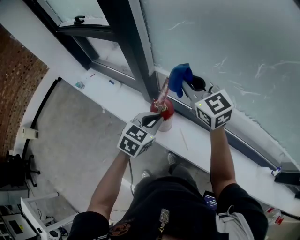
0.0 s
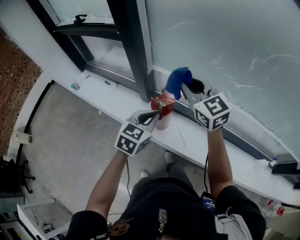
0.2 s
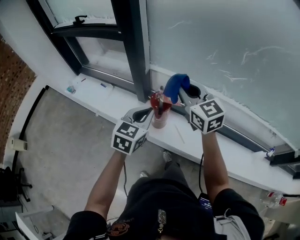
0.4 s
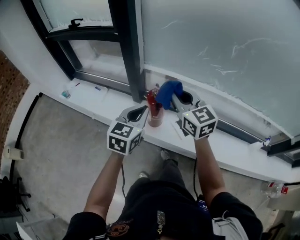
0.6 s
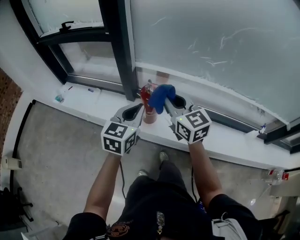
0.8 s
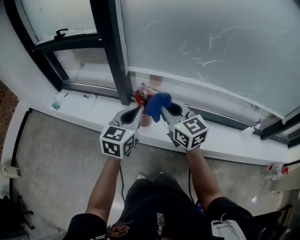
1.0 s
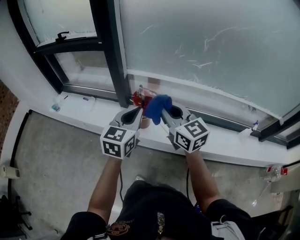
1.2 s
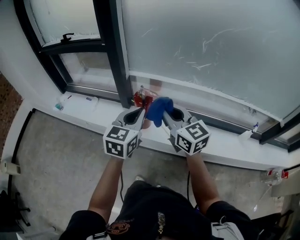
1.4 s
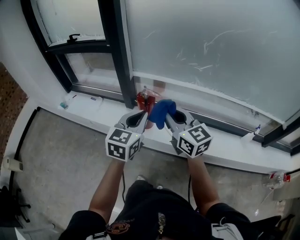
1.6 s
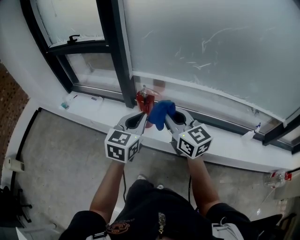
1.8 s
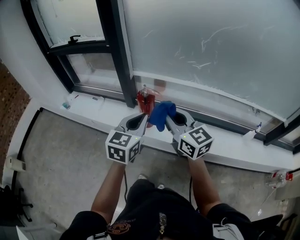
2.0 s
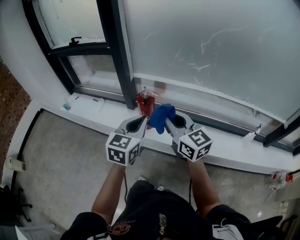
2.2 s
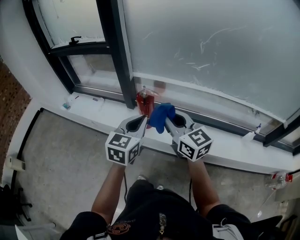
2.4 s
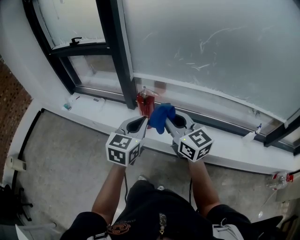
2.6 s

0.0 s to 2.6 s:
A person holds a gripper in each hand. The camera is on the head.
0.0 to 1.2 s: The left gripper goes some 20 cm backward and upward, and rotates some 20 degrees. The right gripper moves backward, some 25 cm, and changes its angle by approximately 20 degrees.
1.2 to 2.6 s: The grippers both shift backward by about 10 cm.

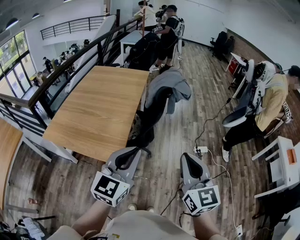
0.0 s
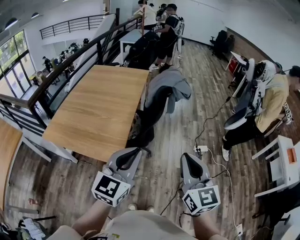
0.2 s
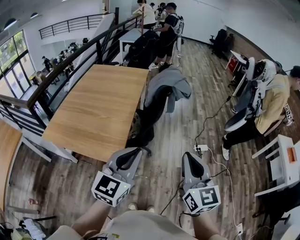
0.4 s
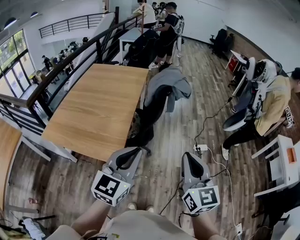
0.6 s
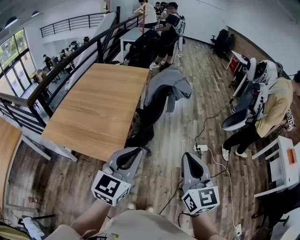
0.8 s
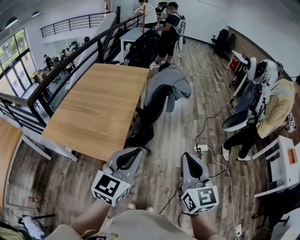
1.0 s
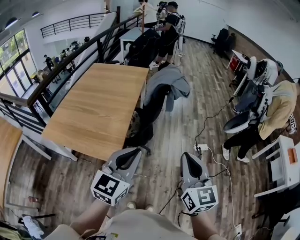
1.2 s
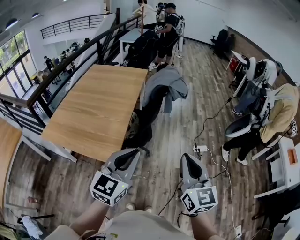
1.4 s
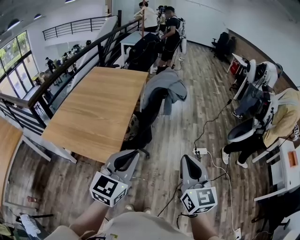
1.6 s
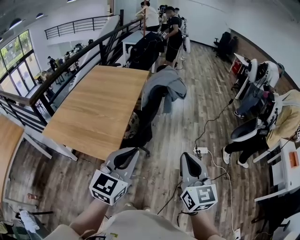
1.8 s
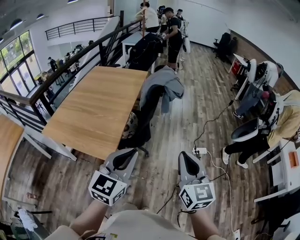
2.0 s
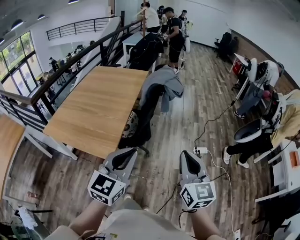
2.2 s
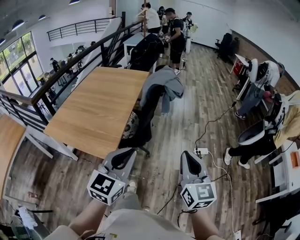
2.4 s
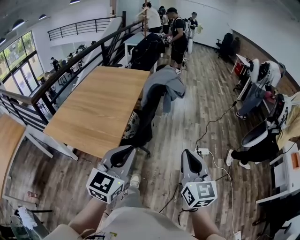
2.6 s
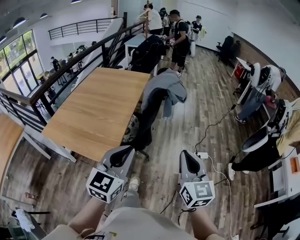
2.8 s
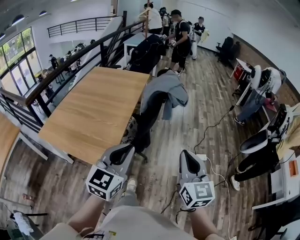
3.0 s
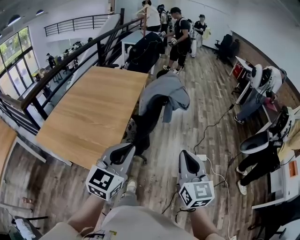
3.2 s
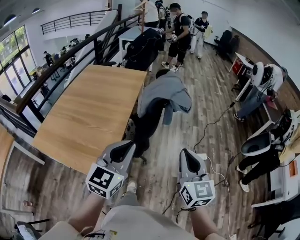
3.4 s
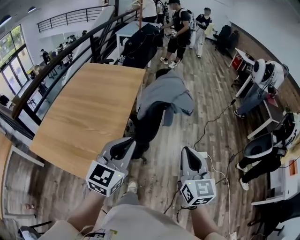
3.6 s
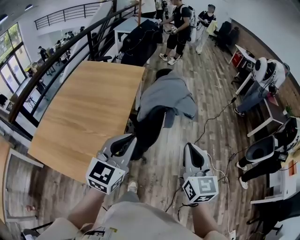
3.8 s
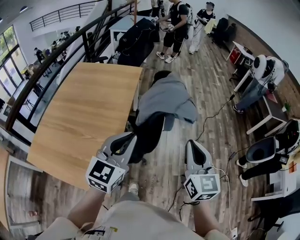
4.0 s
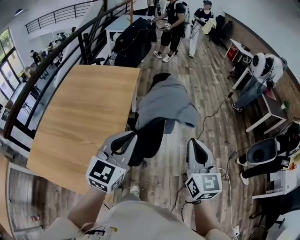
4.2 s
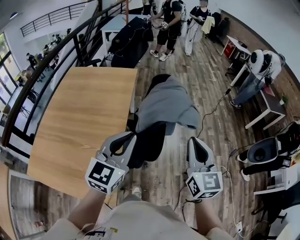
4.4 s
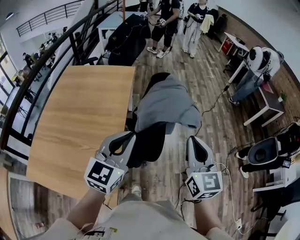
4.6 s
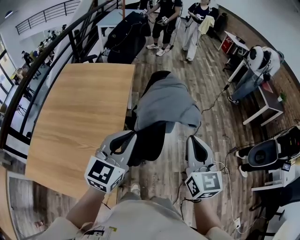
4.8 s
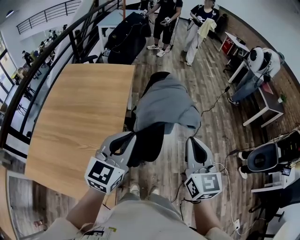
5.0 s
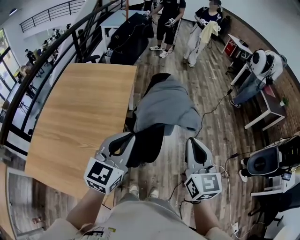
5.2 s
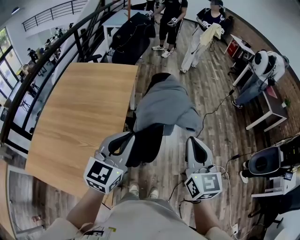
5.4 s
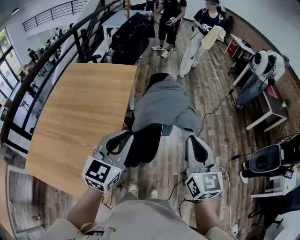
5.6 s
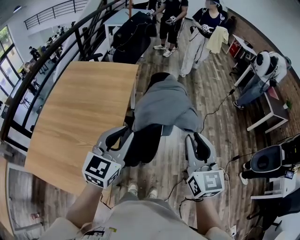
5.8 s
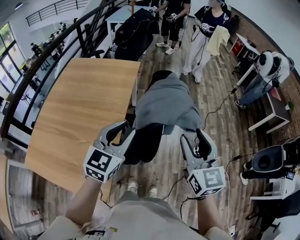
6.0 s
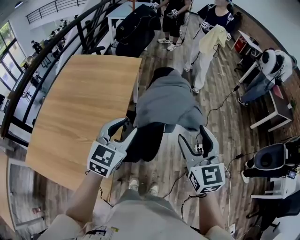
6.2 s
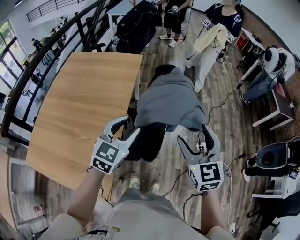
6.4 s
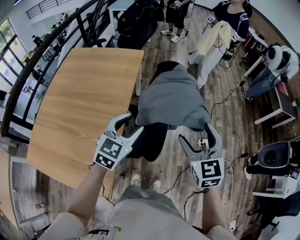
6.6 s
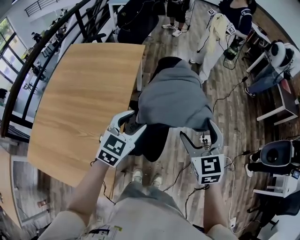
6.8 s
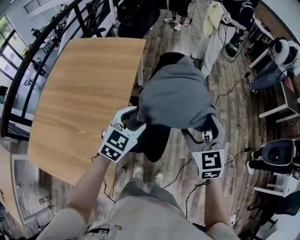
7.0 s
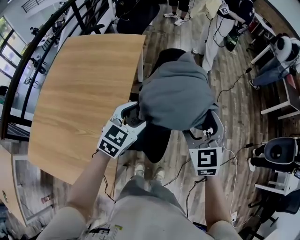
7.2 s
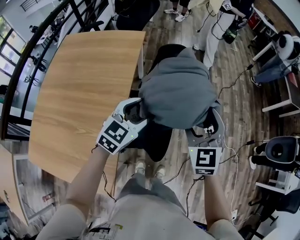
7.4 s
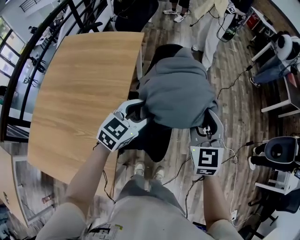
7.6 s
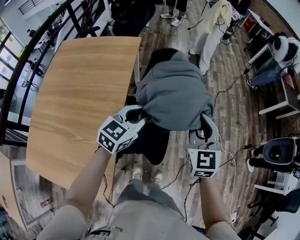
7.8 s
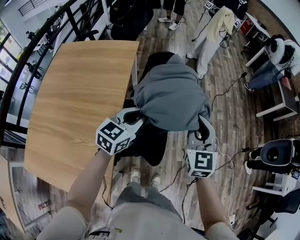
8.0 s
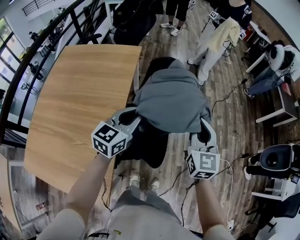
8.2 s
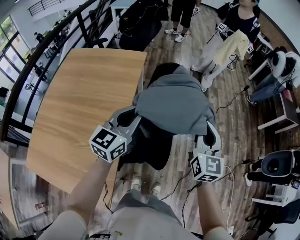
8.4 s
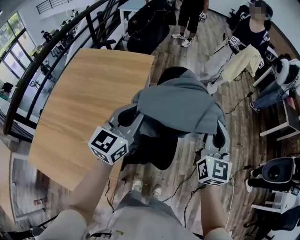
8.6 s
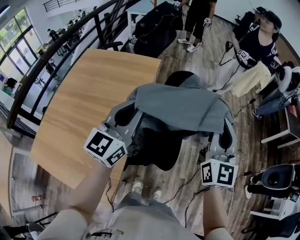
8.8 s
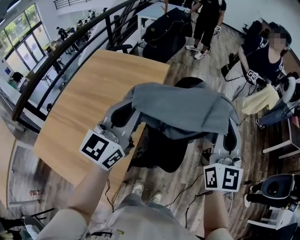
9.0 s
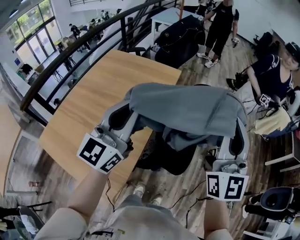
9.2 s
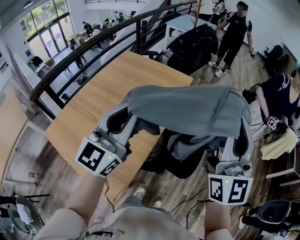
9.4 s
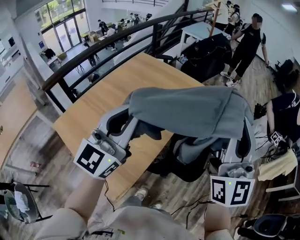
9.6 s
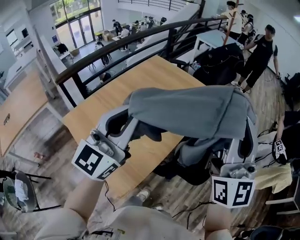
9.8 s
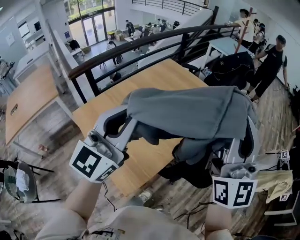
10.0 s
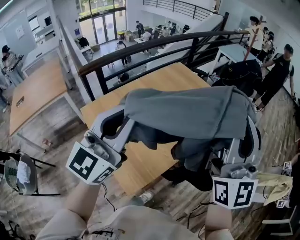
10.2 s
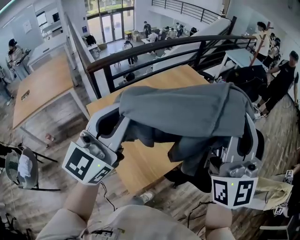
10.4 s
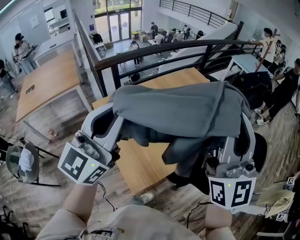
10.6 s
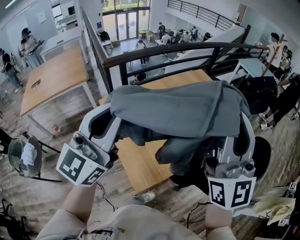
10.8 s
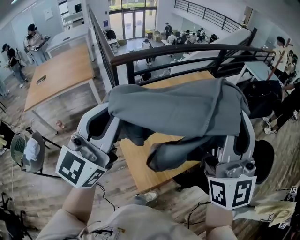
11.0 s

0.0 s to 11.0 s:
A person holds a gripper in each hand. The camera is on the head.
0.0 to 1.6 s: The right gripper heads to the right, covering roughly 5 cm.
1.6 to 3.2 s: Both grippers move forward, some 15 cm.
3.2 to 4.8 s: The two grippers go approximately 30 cm forward.
4.8 to 6.2 s: The right gripper heads forward, covering about 5 cm, and opens its fingers. The left gripper is displaced forward and downward by about 10 cm, and opens up.
6.2 to 7.8 s: Both grippers travel together forward and downward, roughly 20 cm. The right gripper closes its fingers, while the left gripper turns by some 20 degrees, and closes its fingers.
7.8 to 9.4 s: The two grippers go approximately 30 cm upward. The right gripper tips its fingers upward by approximately 40 degrees. The left gripper angles its fingers upward, by approximately 40 degrees.
9.4 to 11.0 s: The right gripper ends up some 35 cm from where it was, and swivels about 40 degrees; the left gripper moves approximately 40 cm, and changes its angle by some 40 degrees.

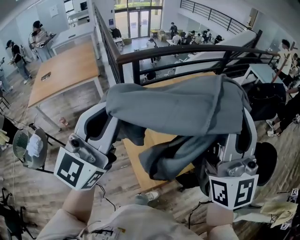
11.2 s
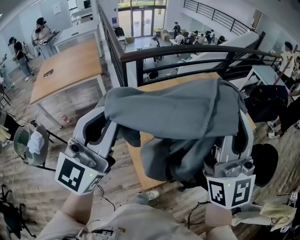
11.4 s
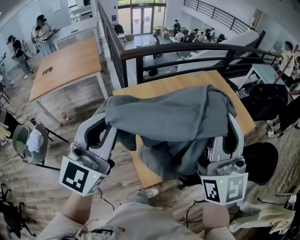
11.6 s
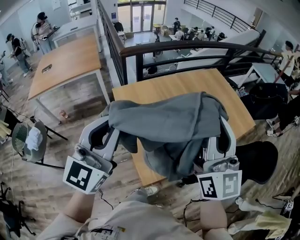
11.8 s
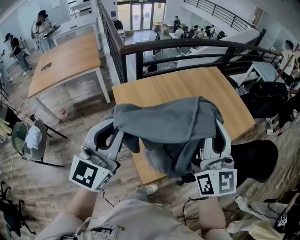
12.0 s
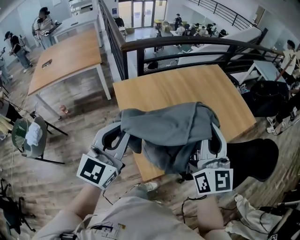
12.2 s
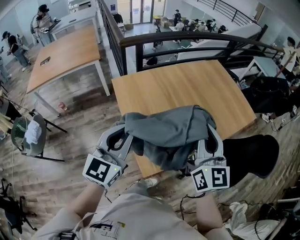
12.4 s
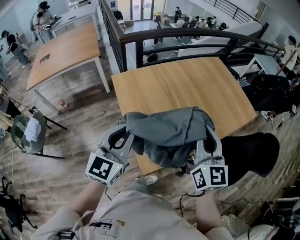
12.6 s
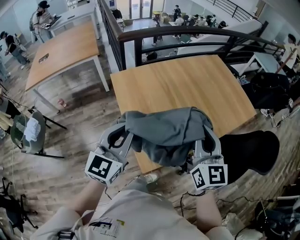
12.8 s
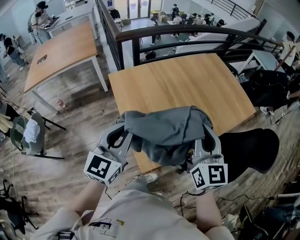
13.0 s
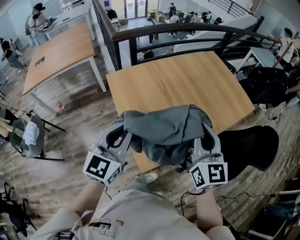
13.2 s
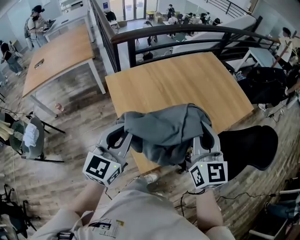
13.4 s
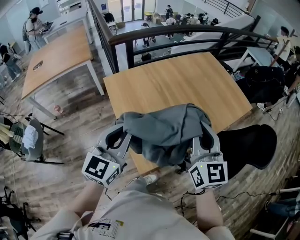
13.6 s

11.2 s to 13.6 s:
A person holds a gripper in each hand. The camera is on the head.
11.2 to 12.4 s: The two grippers go roughly 20 cm downward. The right gripper turns by approximately 30 degrees. The left gripper changes its angle by roughly 20 degrees.
12.4 to 13.6 s: The grippers move only a little.

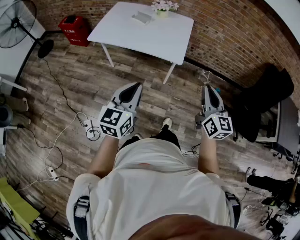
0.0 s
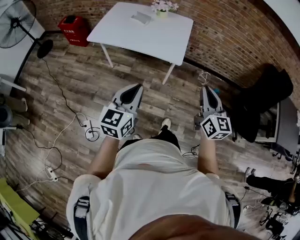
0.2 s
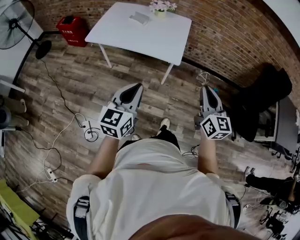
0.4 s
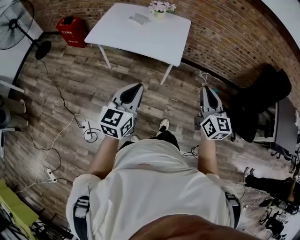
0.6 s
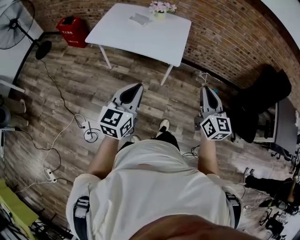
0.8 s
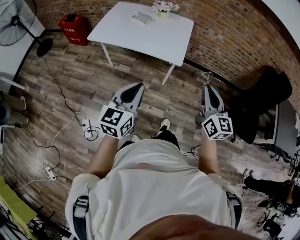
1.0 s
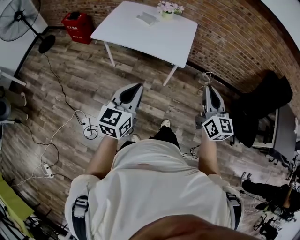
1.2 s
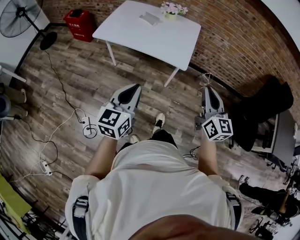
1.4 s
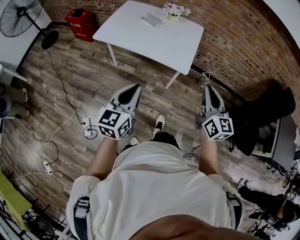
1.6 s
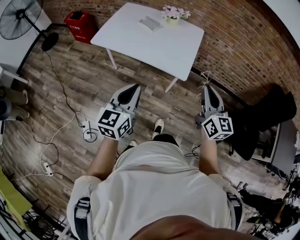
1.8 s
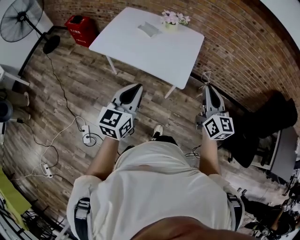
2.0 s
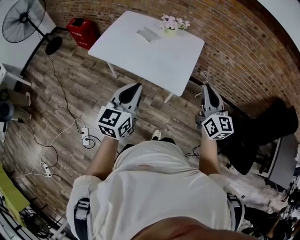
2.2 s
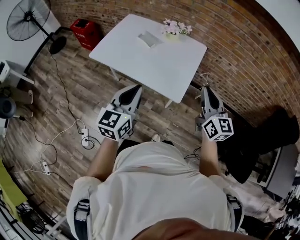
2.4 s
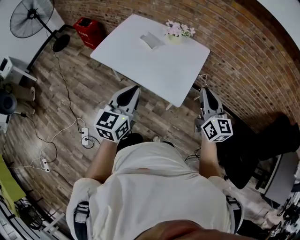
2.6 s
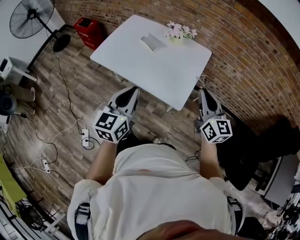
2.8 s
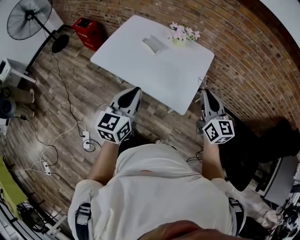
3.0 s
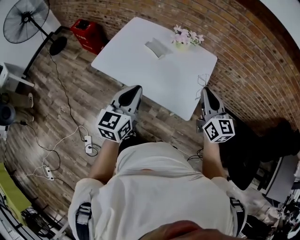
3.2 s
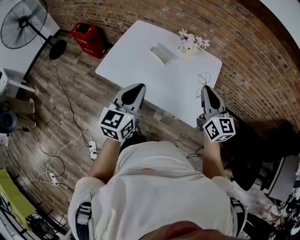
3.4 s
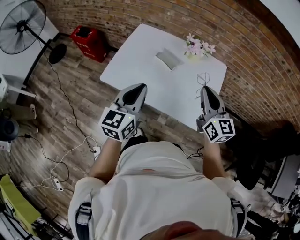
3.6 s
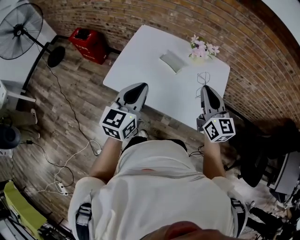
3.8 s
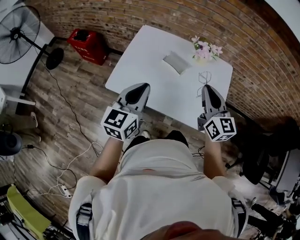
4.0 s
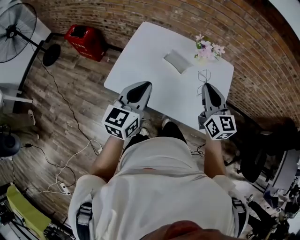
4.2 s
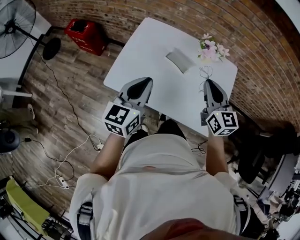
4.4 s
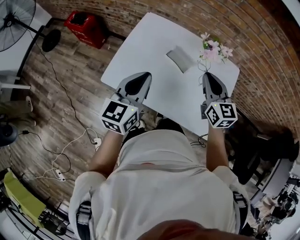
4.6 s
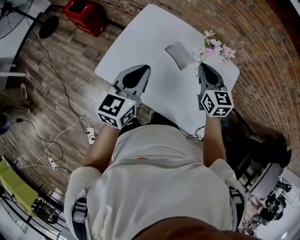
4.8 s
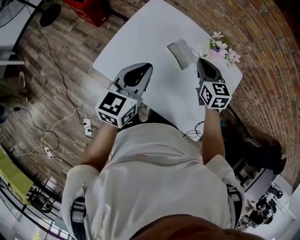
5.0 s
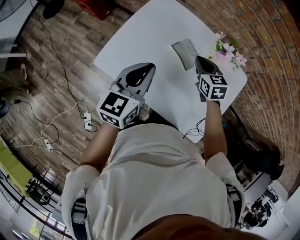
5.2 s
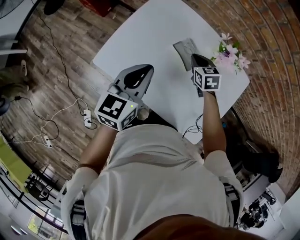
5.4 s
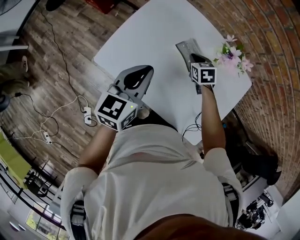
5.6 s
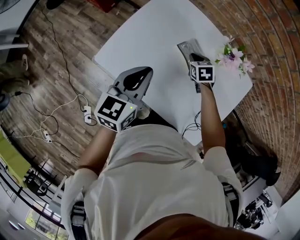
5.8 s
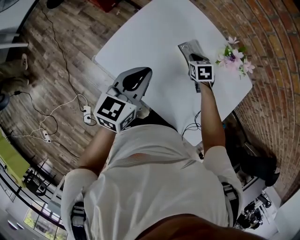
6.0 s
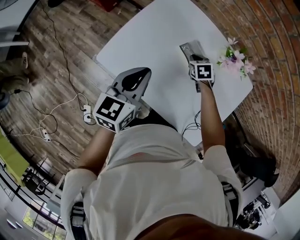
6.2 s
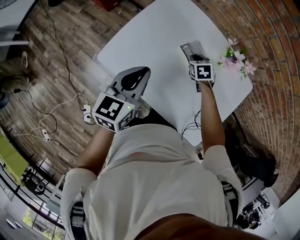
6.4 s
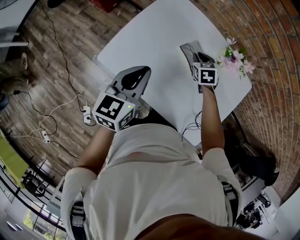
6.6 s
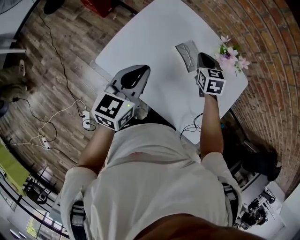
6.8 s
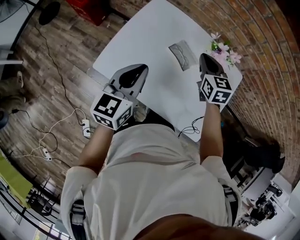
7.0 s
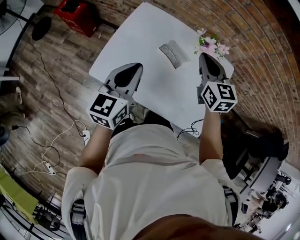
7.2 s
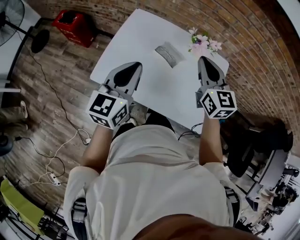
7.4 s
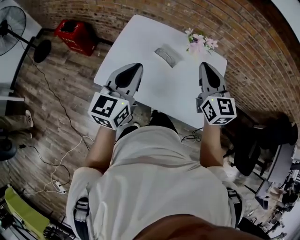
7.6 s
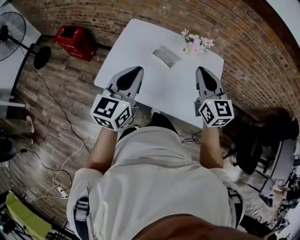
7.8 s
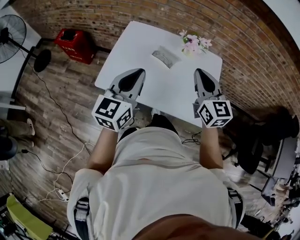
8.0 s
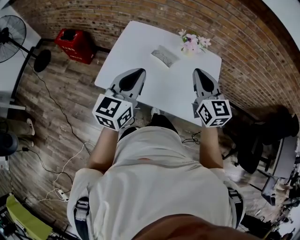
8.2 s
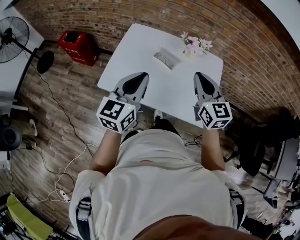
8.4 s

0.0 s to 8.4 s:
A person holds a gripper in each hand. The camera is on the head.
0.0 to 1.4 s: There are only small adjustments of the grippers.
1.4 to 2.8 s: Both grippers travel together forward, approximately 25 cm.
2.8 to 4.2 s: The left gripper is displaced forward and to the left by roughly 30 cm. The right gripper goes roughly 30 cm to the left and forward.
4.2 to 5.6 s: The right gripper shifts about 35 cm downward and forward, and tips its fingers downward by approximately 50 degrees, while the left gripper travels forward and downward by roughly 15 cm.
5.6 to 7.0 s: The left gripper moves approximately 5 cm, while the right gripper is displaced upward by approximately 20 cm, and swivels some 30 degrees.
7.0 to 8.4 s: The left gripper goes approximately 15 cm backward, upward and to the right; the right gripper shifts approximately 25 cm backward and upward, and swivels about 20 degrees.
